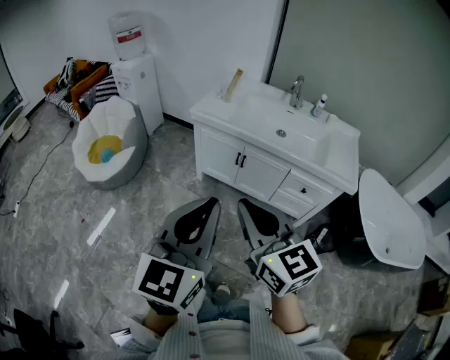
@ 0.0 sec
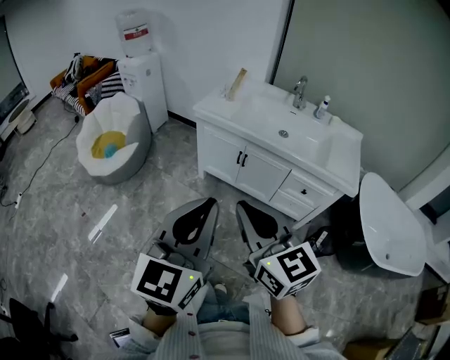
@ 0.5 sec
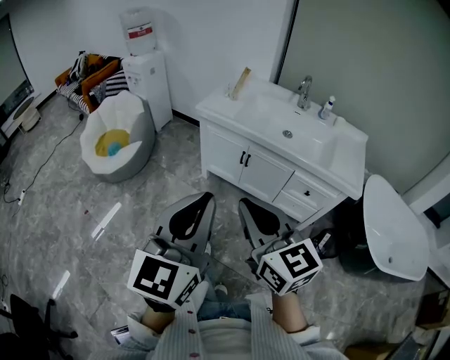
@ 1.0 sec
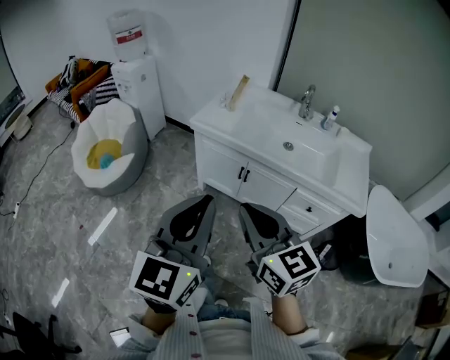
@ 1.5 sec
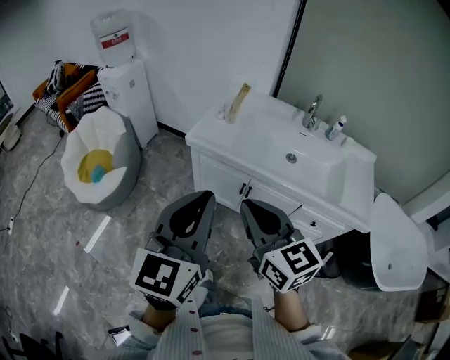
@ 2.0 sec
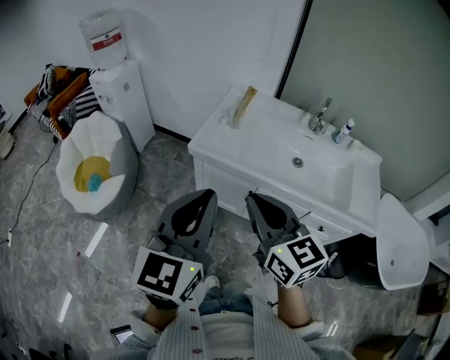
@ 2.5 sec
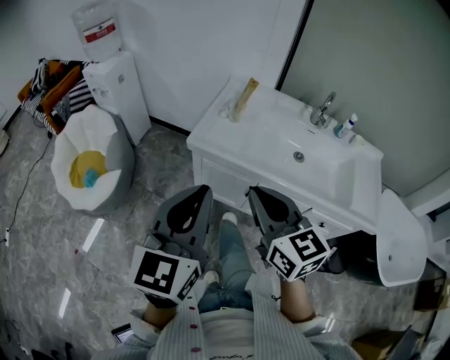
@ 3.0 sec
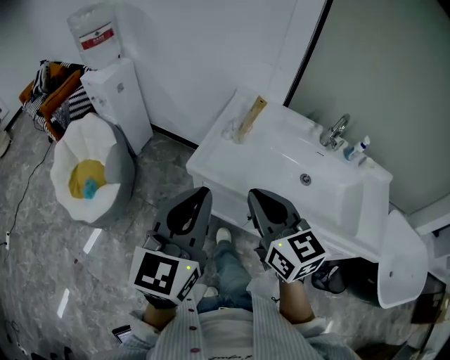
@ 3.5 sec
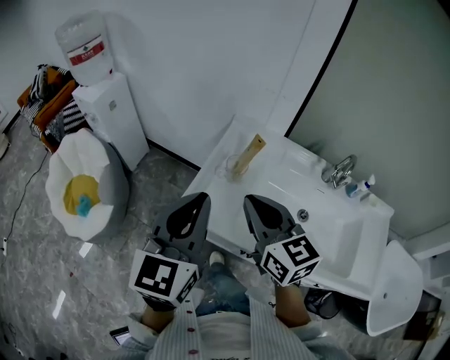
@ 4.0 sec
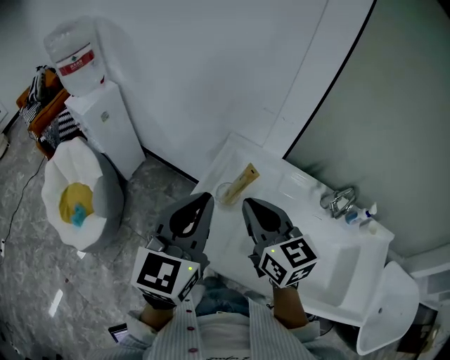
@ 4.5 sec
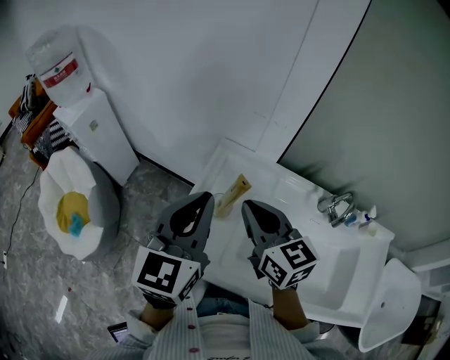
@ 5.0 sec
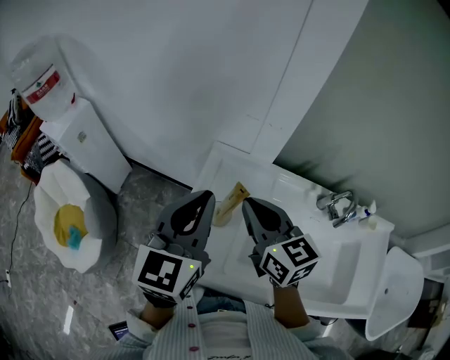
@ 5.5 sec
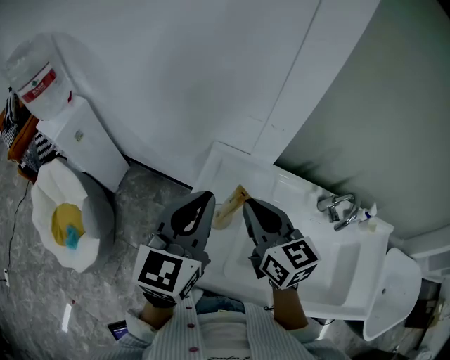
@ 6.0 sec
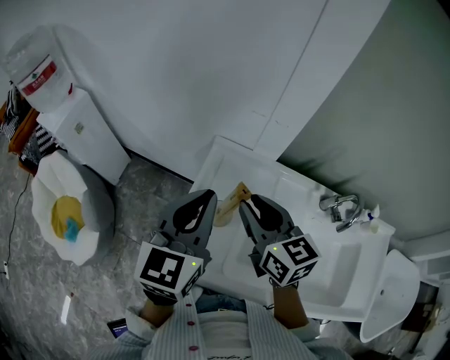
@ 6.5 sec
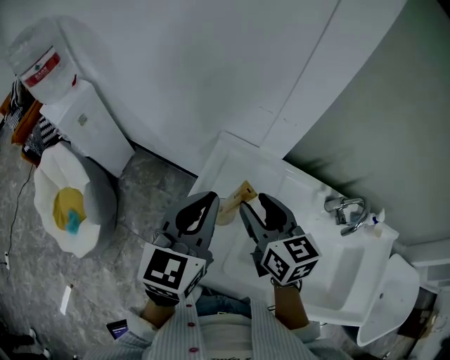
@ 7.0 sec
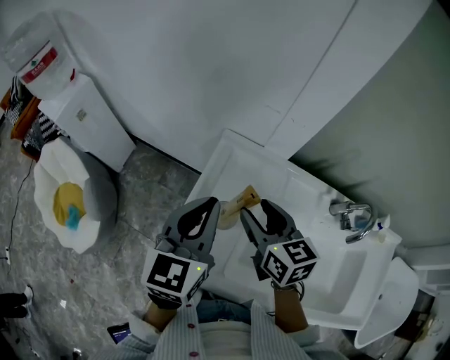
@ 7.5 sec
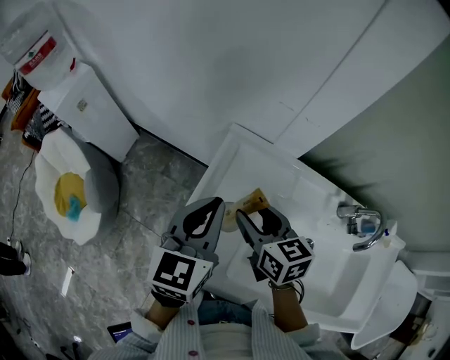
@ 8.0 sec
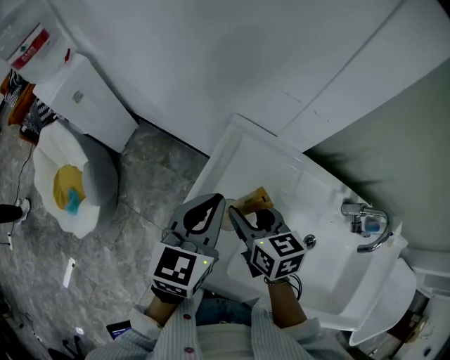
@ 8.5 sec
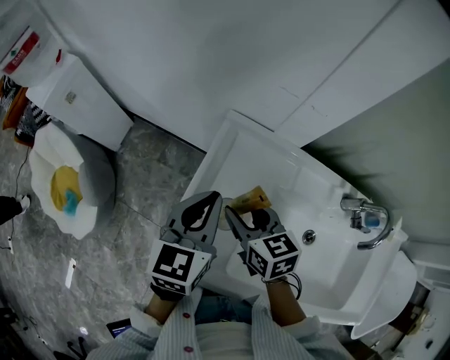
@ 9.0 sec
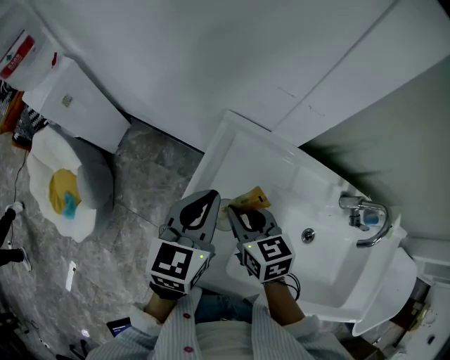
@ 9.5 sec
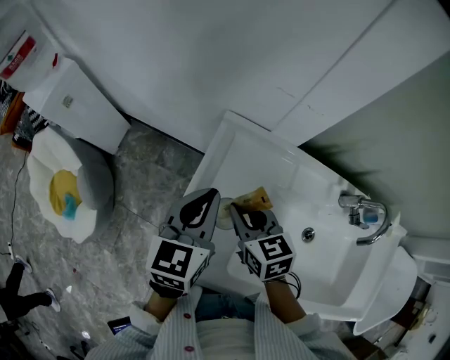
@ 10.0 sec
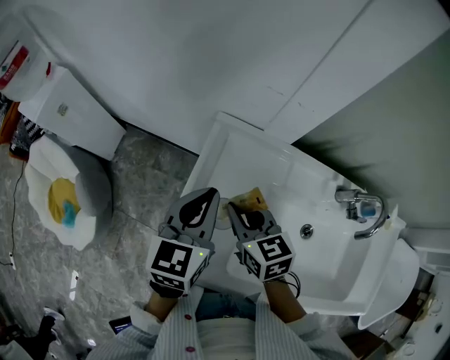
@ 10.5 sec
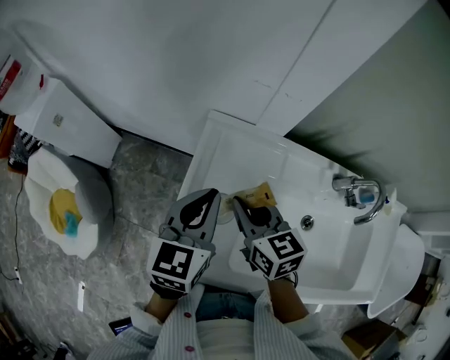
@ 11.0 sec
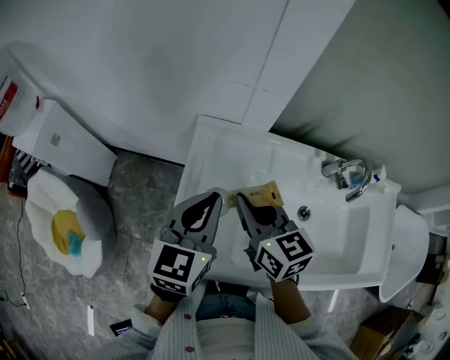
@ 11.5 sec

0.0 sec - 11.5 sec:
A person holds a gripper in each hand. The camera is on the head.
0.0 sec - 2.0 sec: The grippers both shift forward by roughly 25 cm.
2.0 sec - 4.0 sec: The two grippers go approximately 35 cm forward.
4.0 sec - 6.0 sec: Both grippers travel together forward, some 20 cm.
6.0 sec - 7.5 sec: Both grippers travel together downward, about 10 cm. The right gripper opens its fingers.
7.5 sec - 9.5 sec: Both grippers move downward, about 10 cm. The right gripper closes up.
9.5 sec - 11.5 sec: The right gripper moves upward, roughly 10 cm, and turns by about 20 degrees, while the left gripper moves roughly 5 cm.

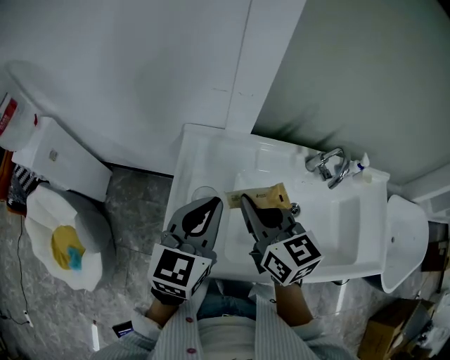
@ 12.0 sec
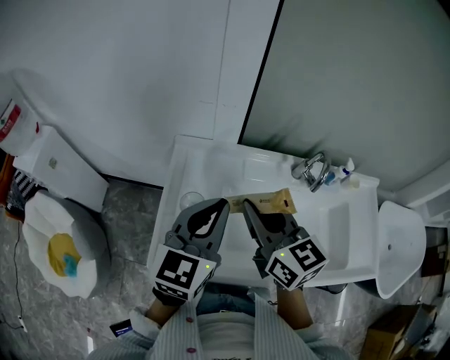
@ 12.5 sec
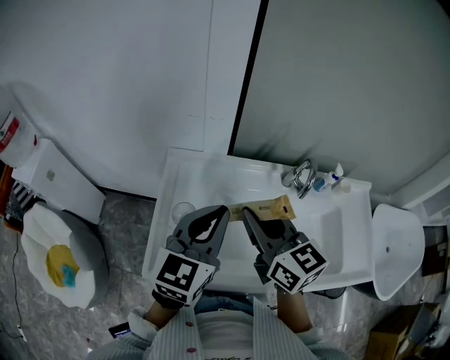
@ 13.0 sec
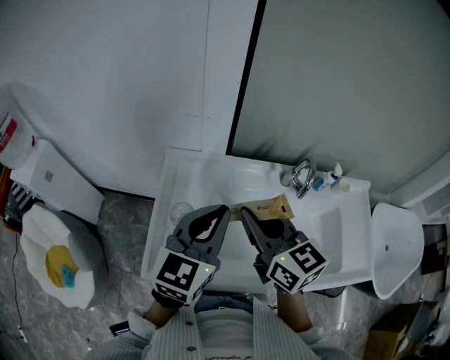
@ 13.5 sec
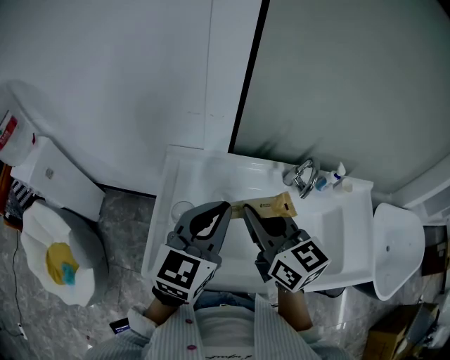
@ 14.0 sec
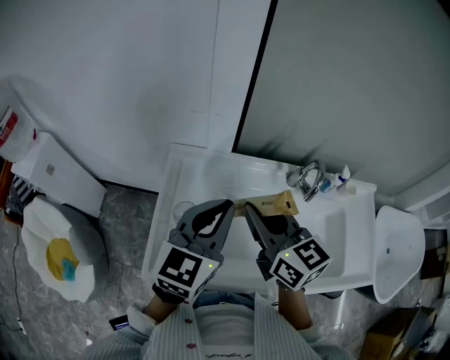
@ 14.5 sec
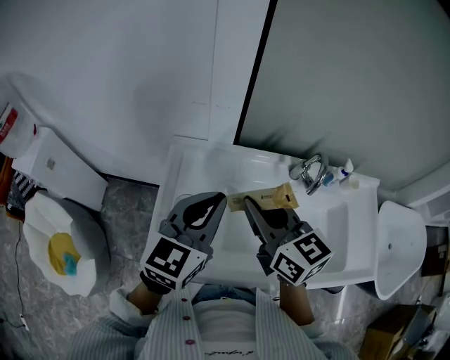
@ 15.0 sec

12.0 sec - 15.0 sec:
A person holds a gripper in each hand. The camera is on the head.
12.0 sec - 13.5 sec: Both grippers move to the right and upward, roughly 10 cm.
13.5 sec - 15.0 sec: The grippers move only a little.

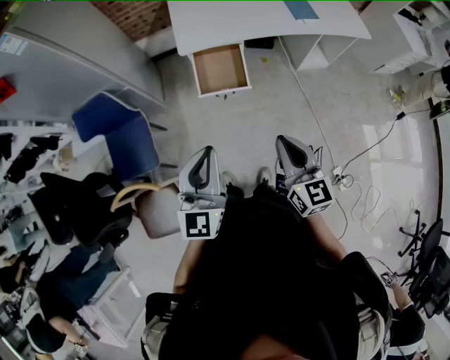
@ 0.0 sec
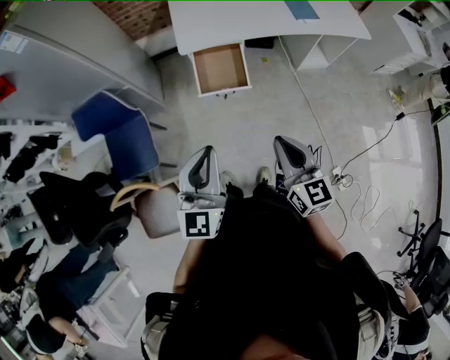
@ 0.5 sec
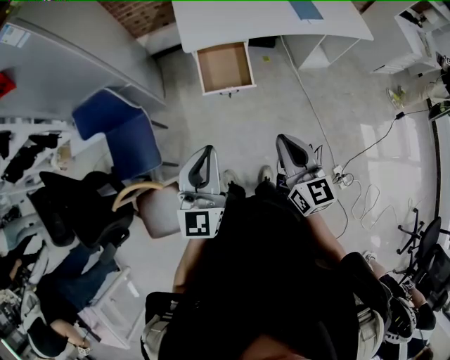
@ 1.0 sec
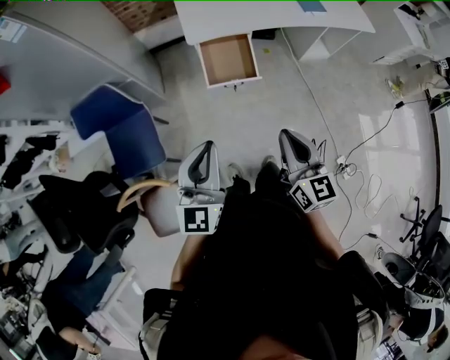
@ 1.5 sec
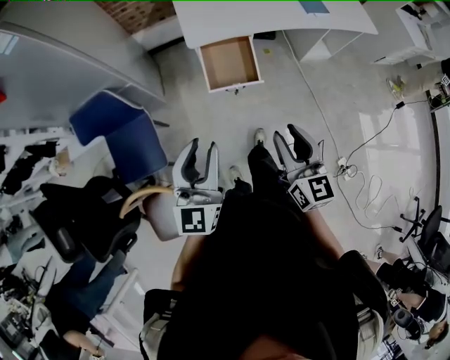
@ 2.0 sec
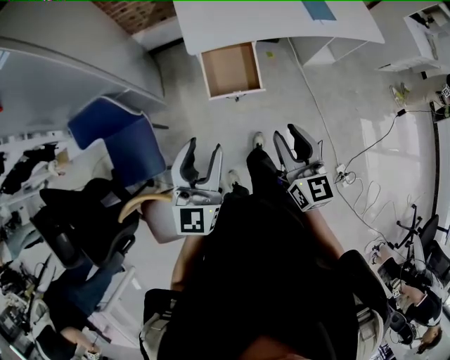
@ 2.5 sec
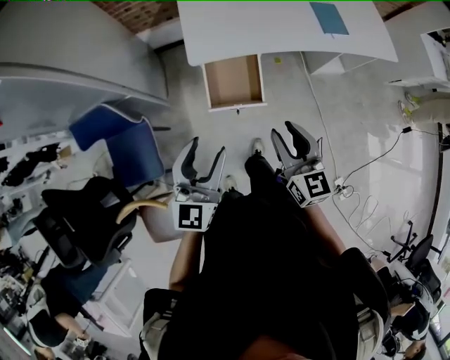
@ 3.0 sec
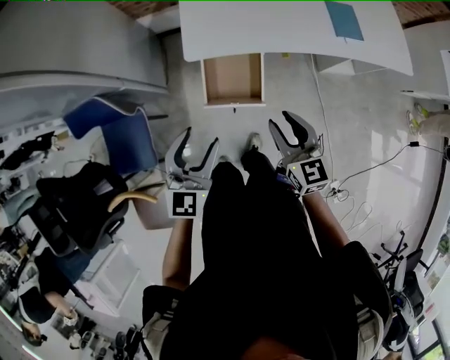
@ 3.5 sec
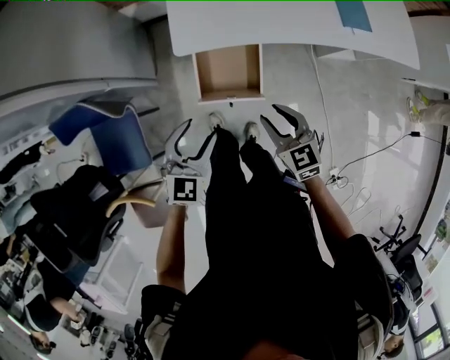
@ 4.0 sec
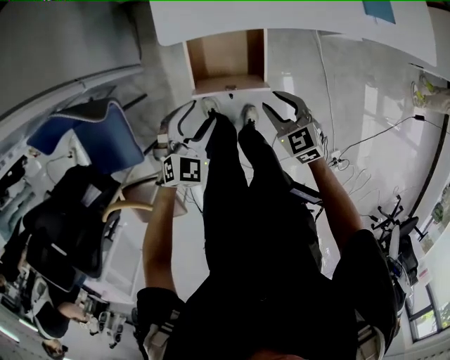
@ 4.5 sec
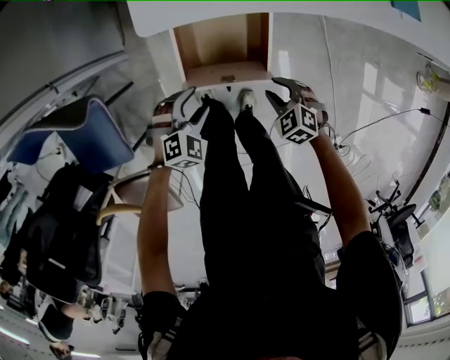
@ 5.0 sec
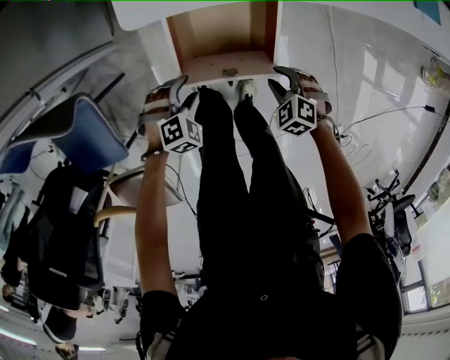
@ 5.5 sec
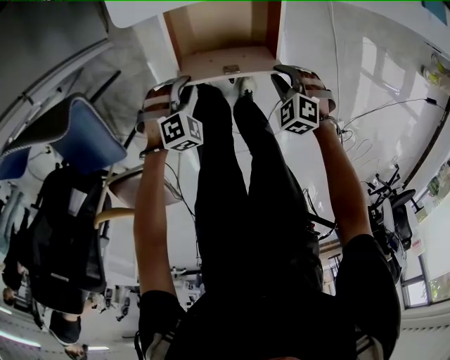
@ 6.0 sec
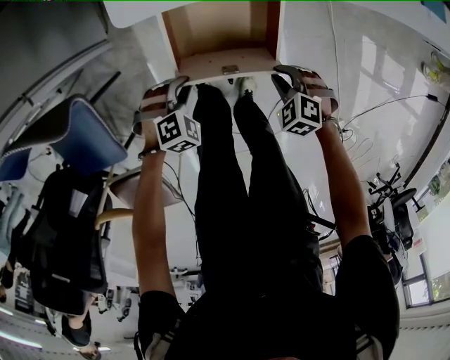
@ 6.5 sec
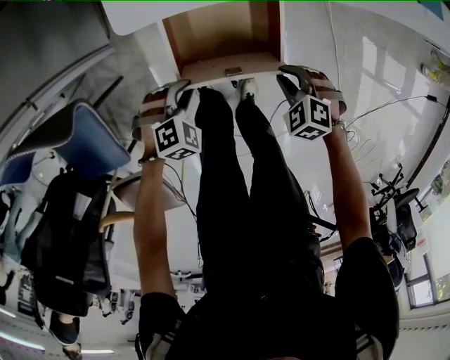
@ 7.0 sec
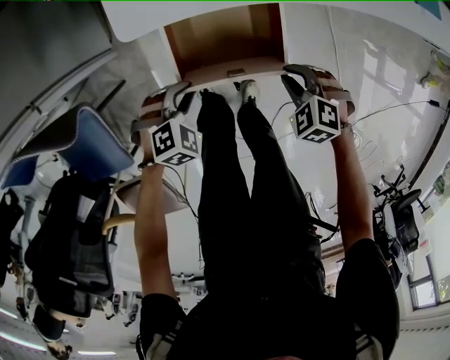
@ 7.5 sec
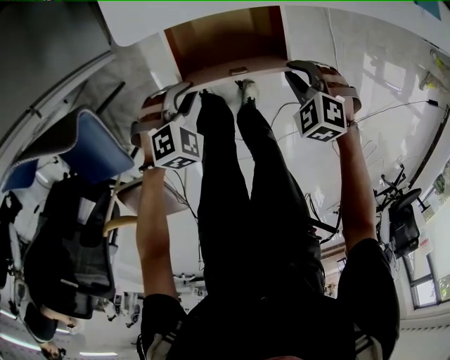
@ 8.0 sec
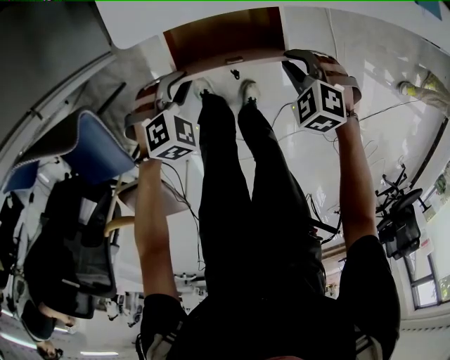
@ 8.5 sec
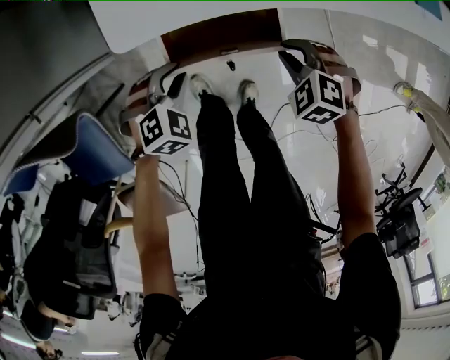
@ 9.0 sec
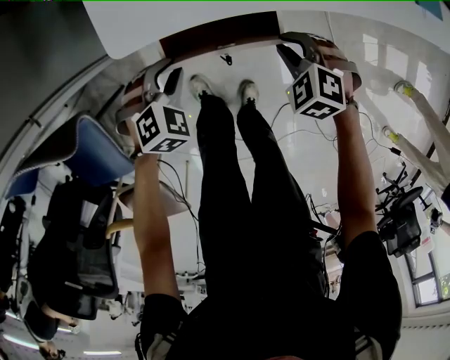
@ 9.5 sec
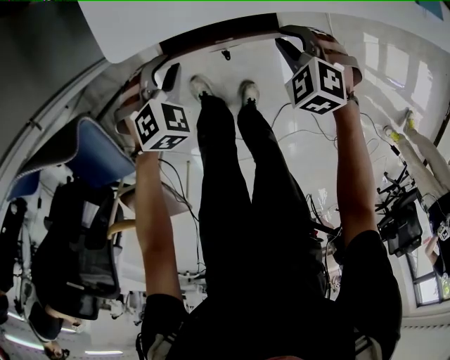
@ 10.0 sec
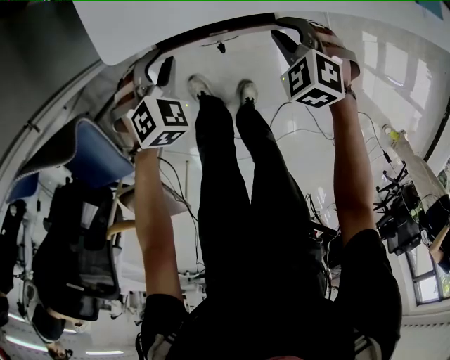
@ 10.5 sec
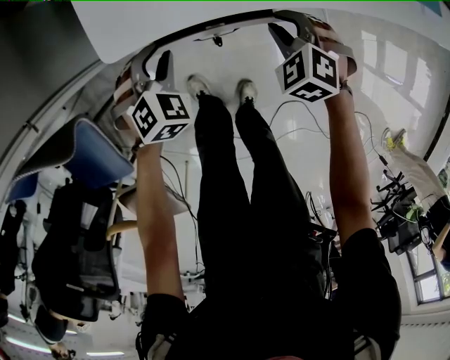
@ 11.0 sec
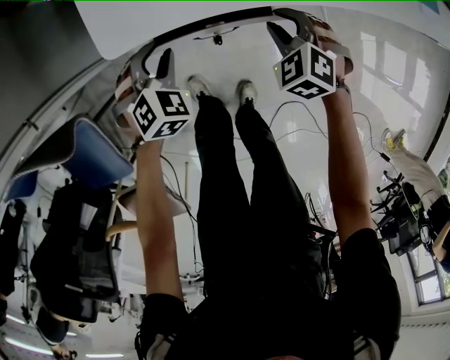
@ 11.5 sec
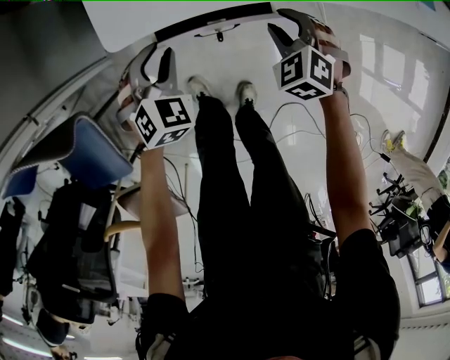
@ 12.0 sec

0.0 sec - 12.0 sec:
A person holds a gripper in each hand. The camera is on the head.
0.0 sec - 2.0 sec: The right gripper shifts roughly 5 cm to the left, and opens its fingers. The left gripper shifts some 10 cm to the left and forward, and opens its fingers.
2.0 sec - 4.0 sec: The right gripper shifts roughly 30 cm forward and downward, and swivels some 30 degrees. Meanwhile the left gripper travels forward, downward and to the right by some 30 cm, turns by roughly 40 degrees, and opens up.
4.0 sec - 6.0 sec: The two grippers go some 35 cm downward. The left gripper points its fingers approximately 40 degrees further downward, and closes, while the right gripper angles its fingers downward, by approximately 40 degrees.
6.0 sec - 8.0 sec: The left gripper moves upward, about 5 cm. Meanwhile the right gripper goes some 10 cm upward and forward.
8.0 sec - 10.0 sec: The grippers both shift forward by approximately 10 cm.
10.0 sec - 12.0 sec: There are only small adjustments of the grippers.
